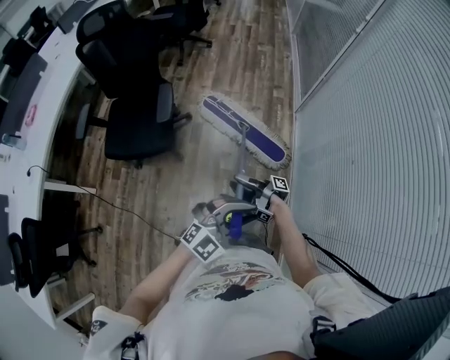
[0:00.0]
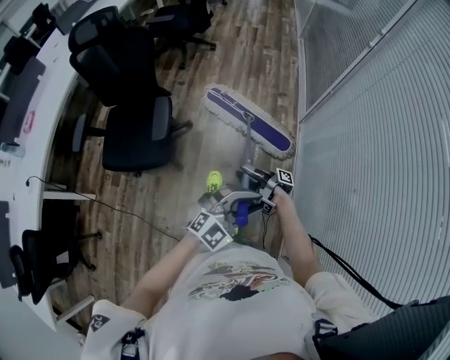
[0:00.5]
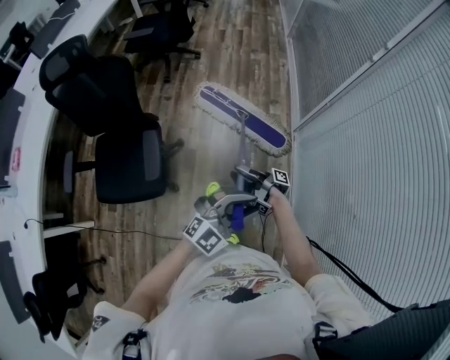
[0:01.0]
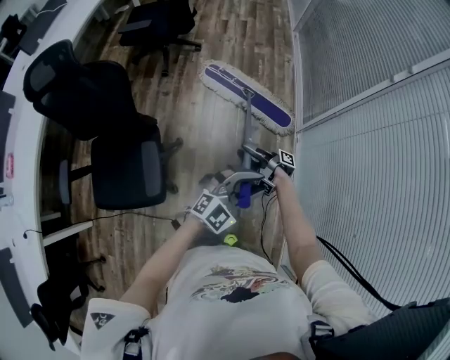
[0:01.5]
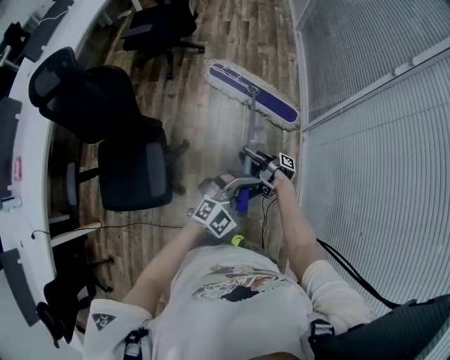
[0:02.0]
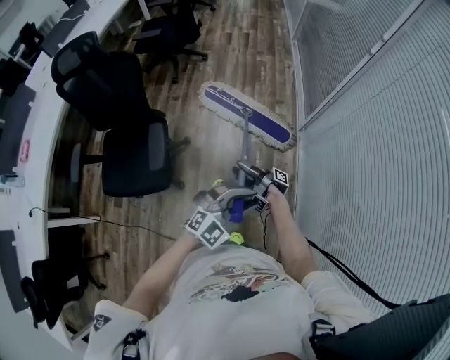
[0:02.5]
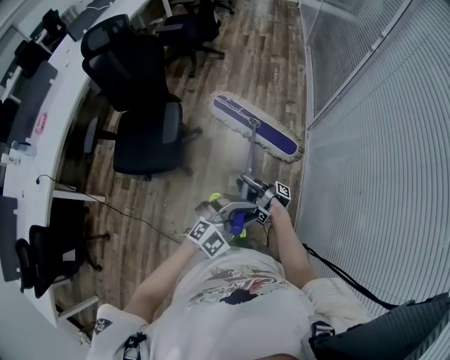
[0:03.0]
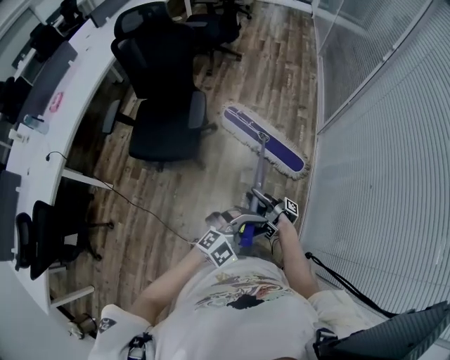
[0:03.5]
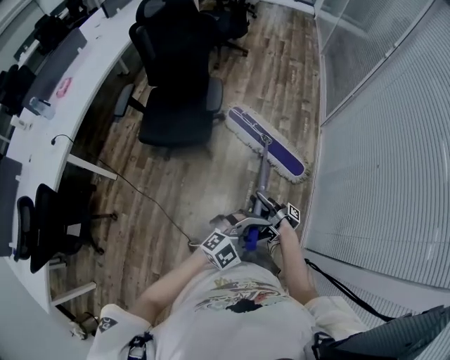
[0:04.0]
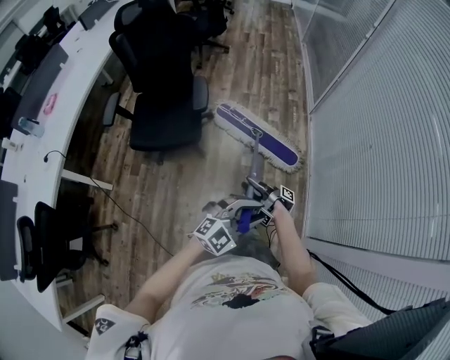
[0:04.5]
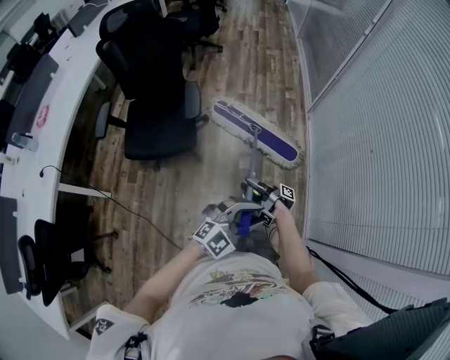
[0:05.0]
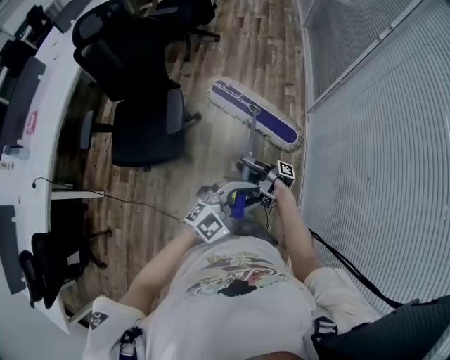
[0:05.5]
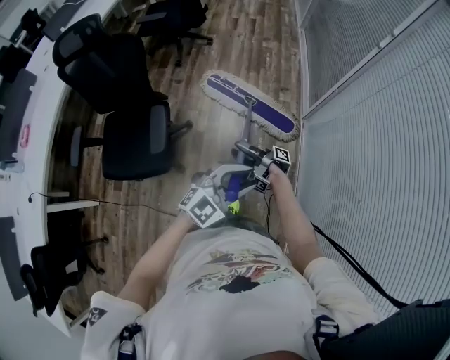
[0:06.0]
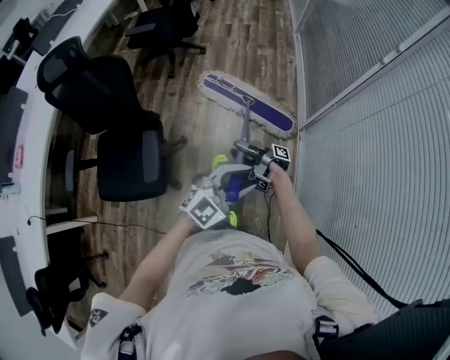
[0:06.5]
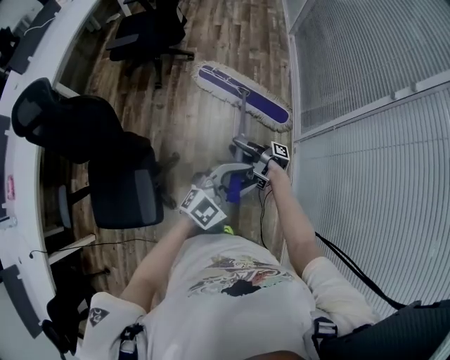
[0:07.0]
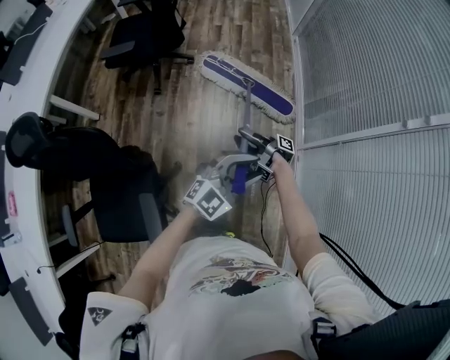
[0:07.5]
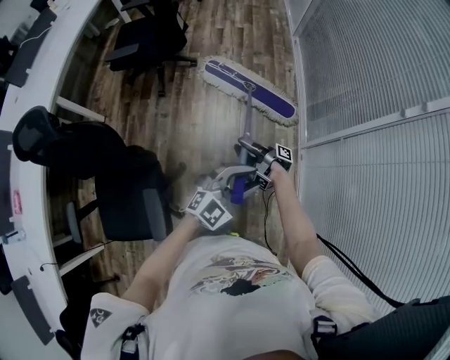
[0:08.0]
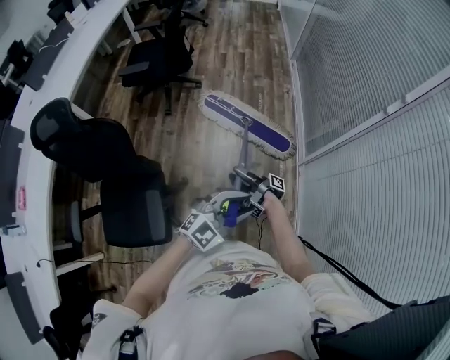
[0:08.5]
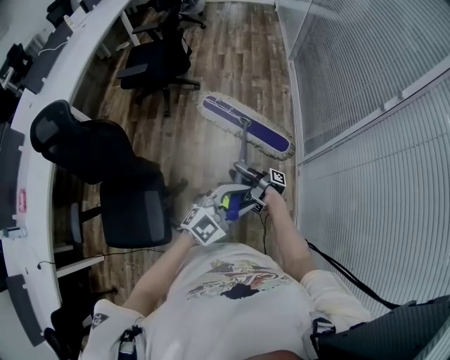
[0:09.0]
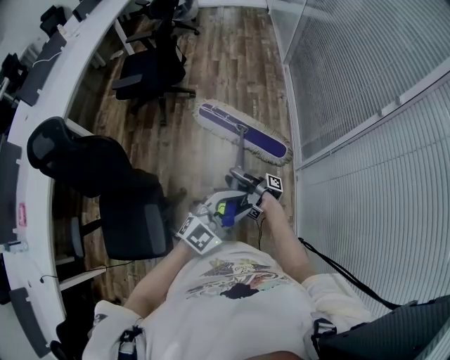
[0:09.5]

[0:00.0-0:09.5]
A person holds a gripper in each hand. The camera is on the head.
0:00.0 to 0:02.0: The left gripper ends up roughly 50 cm from where it was.
0:02.0 to 0:04.0: The left gripper changes place by approximately 70 cm.
0:04.0 to 0:05.5: The left gripper moves approximately 30 cm.
0:05.5 to 0:07.5: The left gripper ends up roughly 70 cm from where it was.
0:07.5 to 0:09.5: The left gripper ends up some 15 cm from where it was.

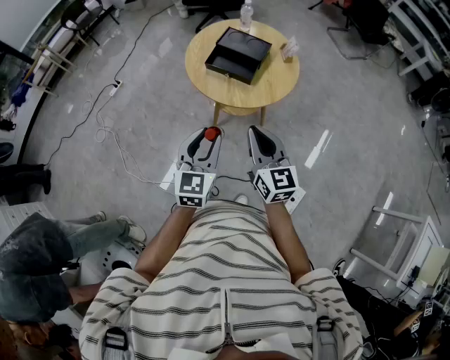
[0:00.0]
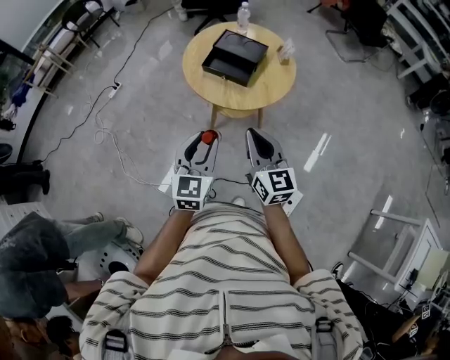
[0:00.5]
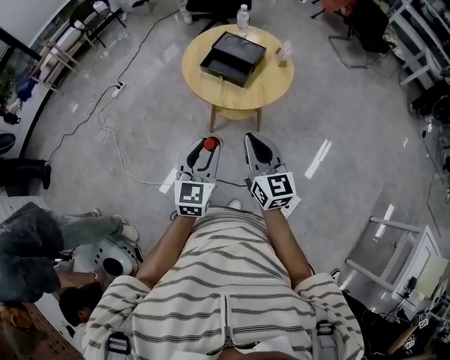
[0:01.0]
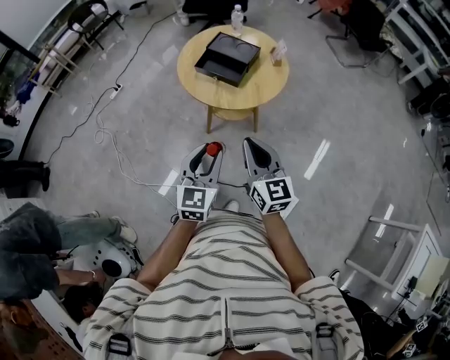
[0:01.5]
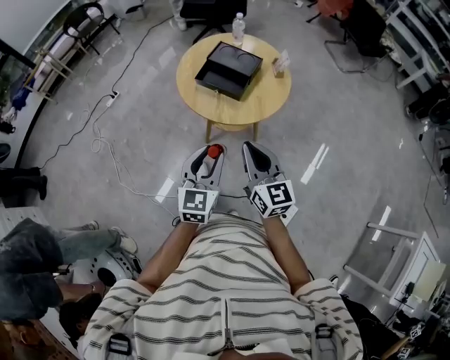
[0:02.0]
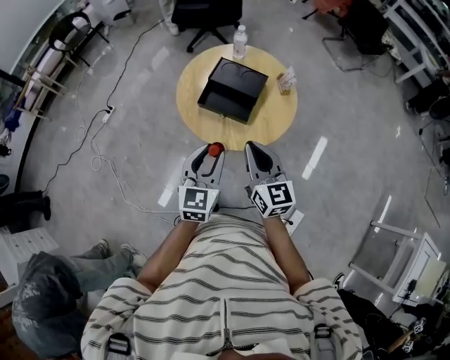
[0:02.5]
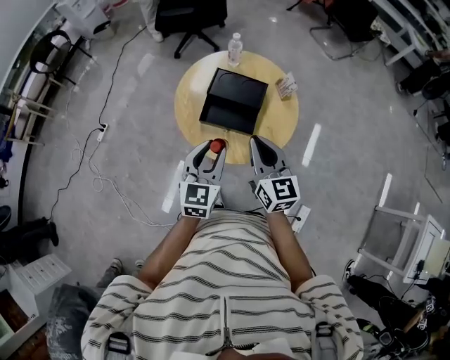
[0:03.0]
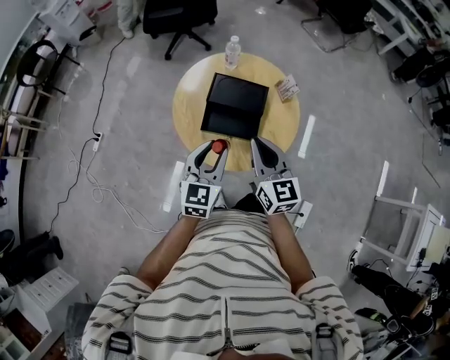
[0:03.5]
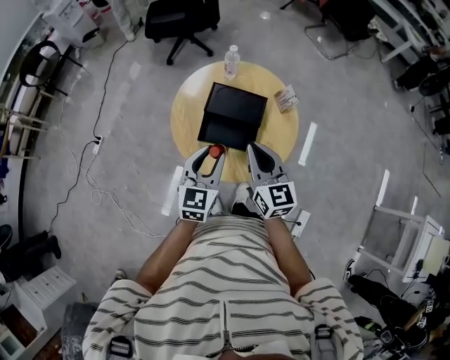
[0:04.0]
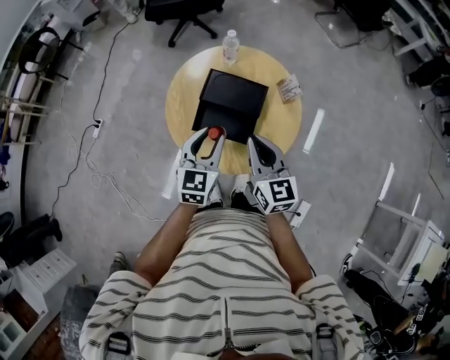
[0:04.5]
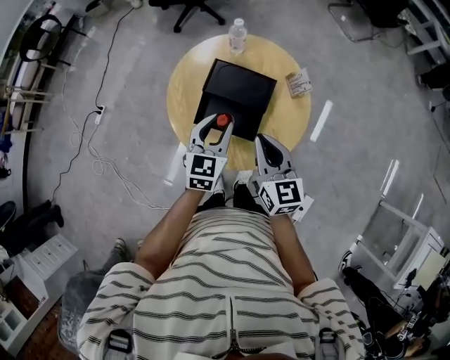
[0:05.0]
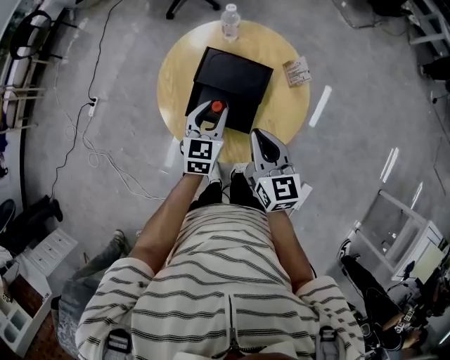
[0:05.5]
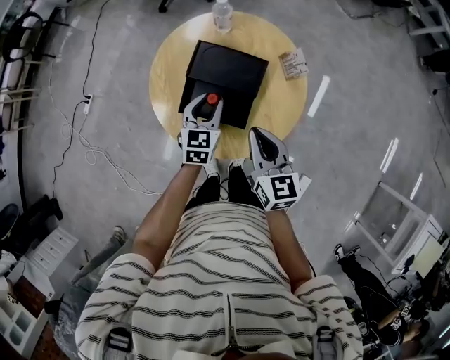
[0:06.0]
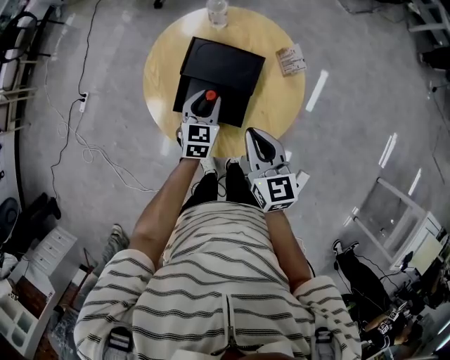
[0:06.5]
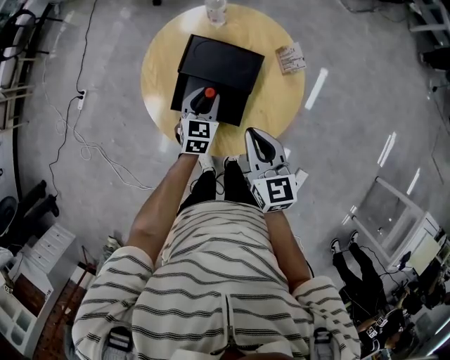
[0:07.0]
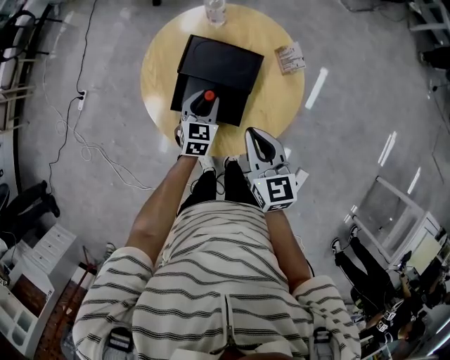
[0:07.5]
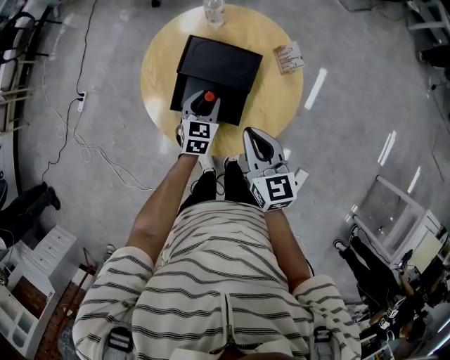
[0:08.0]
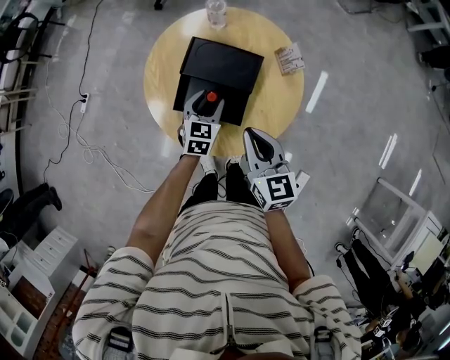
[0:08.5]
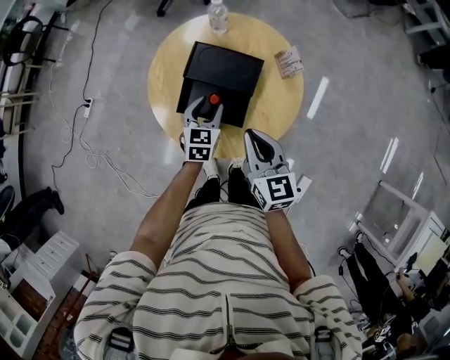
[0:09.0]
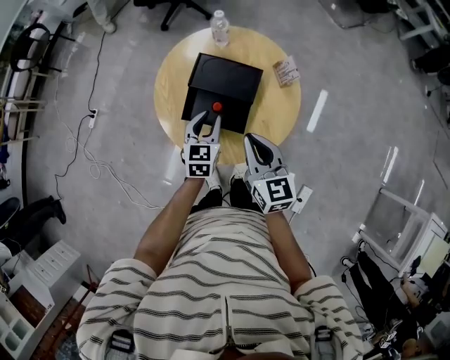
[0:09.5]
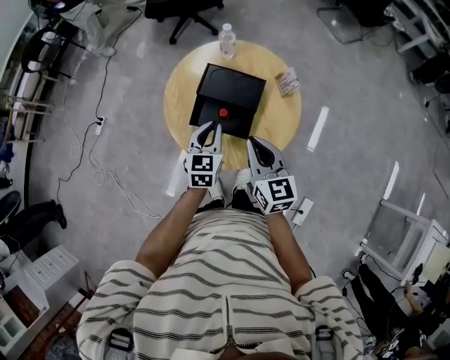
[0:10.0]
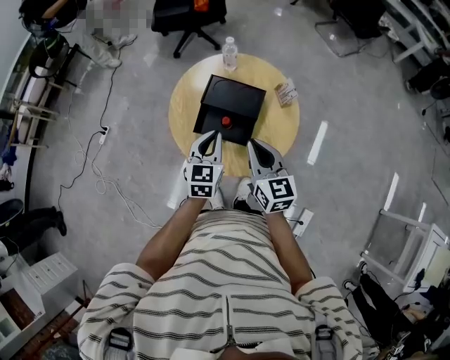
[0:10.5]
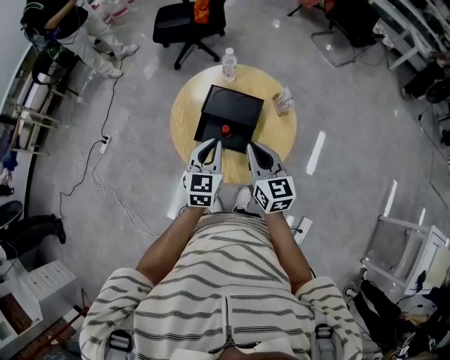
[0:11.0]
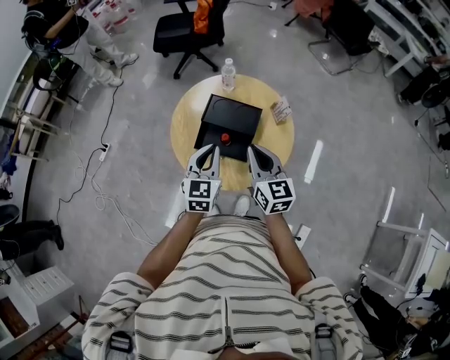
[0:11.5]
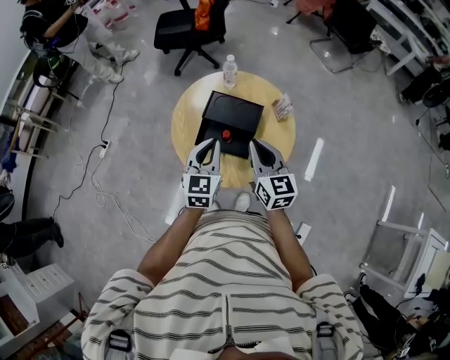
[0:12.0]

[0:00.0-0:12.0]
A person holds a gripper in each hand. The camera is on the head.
0:00.0 to 0:02.0: The left gripper is displaced to the right by roughly 5 cm.
0:02.0 to 0:04.0: The grippers both shift forward by roughly 30 cm.
0:04.0 to 0:06.0: The left gripper moves downward and forward, some 20 cm, while the right gripper travels downward and to the right by roughly 10 cm.
0:06.0 to 0:08.0: The left gripper is displaced downward by roughly 5 cm.
0:08.0 to 0:10.0: The left gripper is displaced upward and backward by about 15 cm, and closes. Meanwhile the right gripper moves about 5 cm.
0:10.0 to 0:12.0: The left gripper travels upward by some 10 cm.

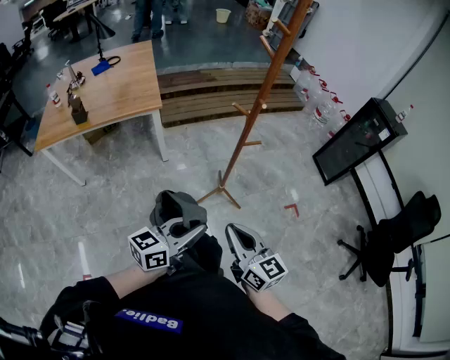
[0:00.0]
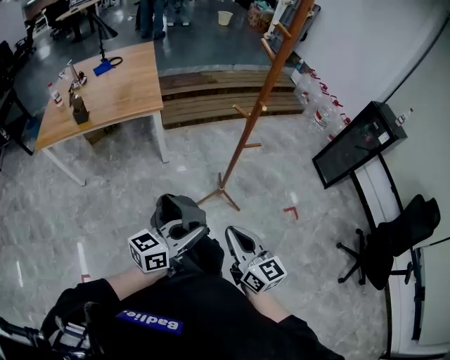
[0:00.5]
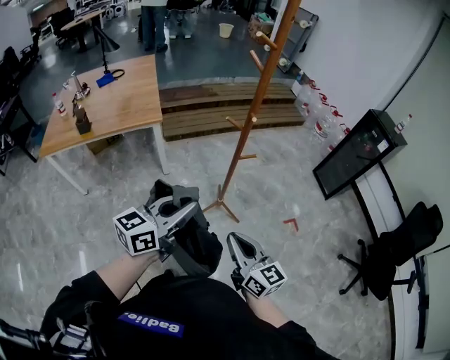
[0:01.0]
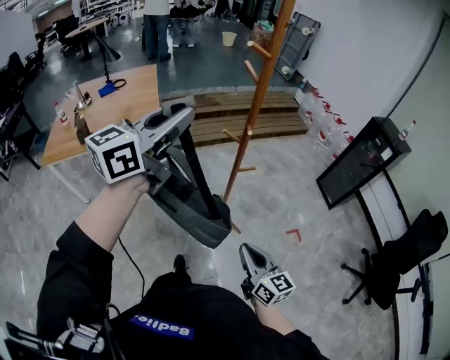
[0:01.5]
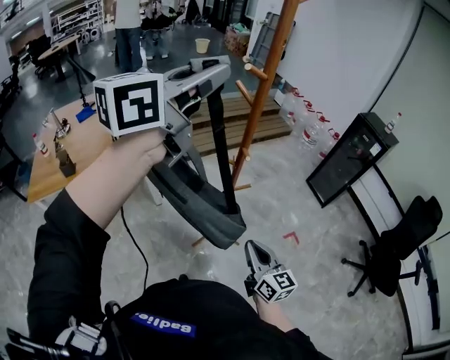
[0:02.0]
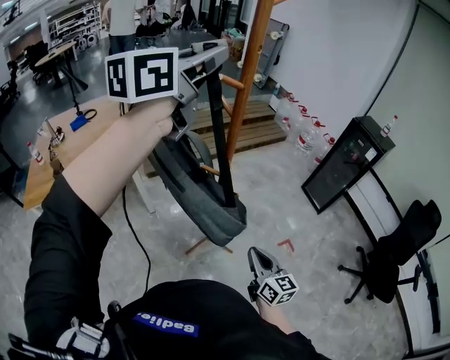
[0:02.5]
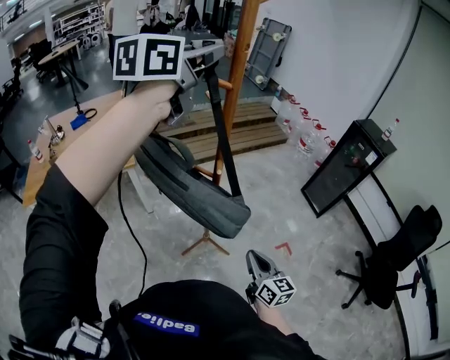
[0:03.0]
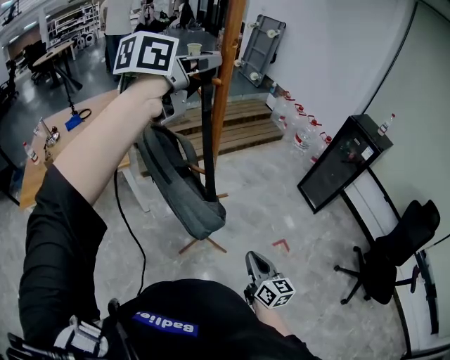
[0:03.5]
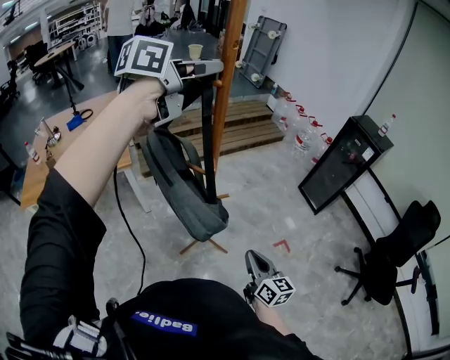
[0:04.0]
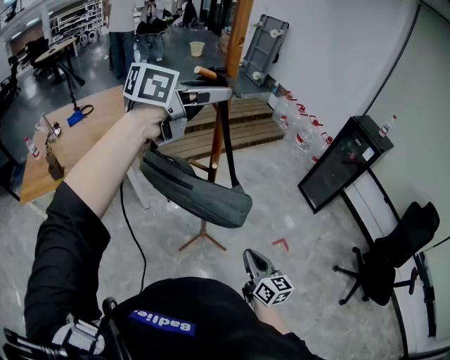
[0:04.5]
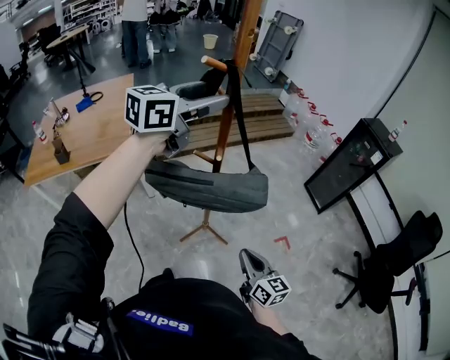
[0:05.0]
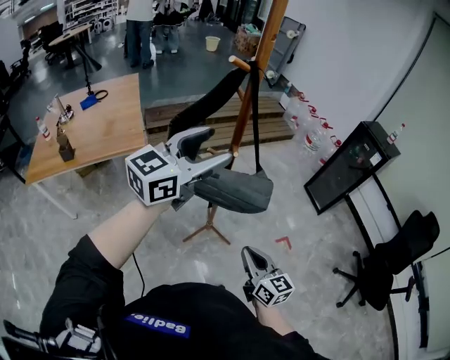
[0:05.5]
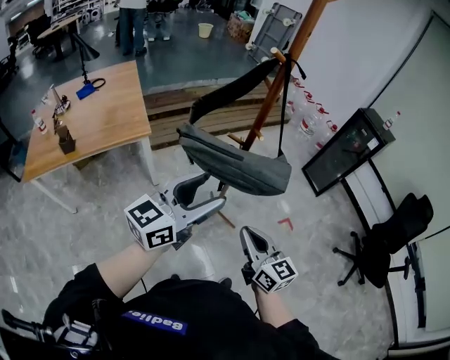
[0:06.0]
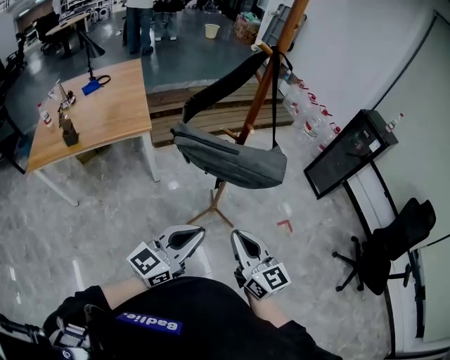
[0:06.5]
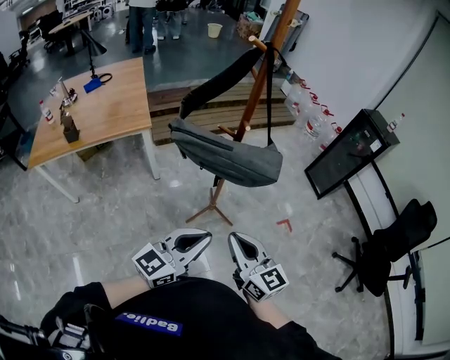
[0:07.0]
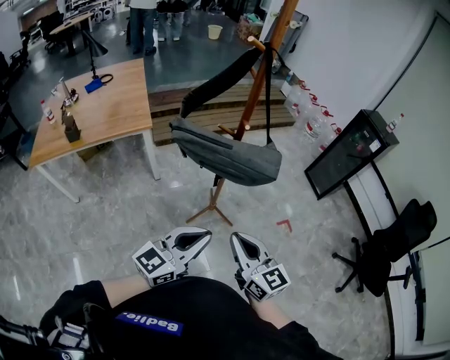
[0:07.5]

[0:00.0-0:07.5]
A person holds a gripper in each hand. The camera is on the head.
0:00.0 to 0:02.0: The right gripper heads forward and to the right, covering some 15 cm. The left gripper goes some 50 cm upward and forward, and turns by approximately 20 degrees.
0:02.0 to 0:04.0: The left gripper moves forward and to the right, approximately 15 cm; the right gripper travels to the right and forward by some 10 cm.
0:04.0 to 0:05.5: The left gripper travels backward and downward by approximately 25 cm, swivels approximately 20 degrees, and opens up. Meanwhile the right gripper heads backward and to the left, covering approximately 10 cm.
0:05.5 to 0:07.5: The right gripper is displaced backward, to the left and upward by about 15 cm. The left gripper moves backward and downward, about 30 cm, and closes.
